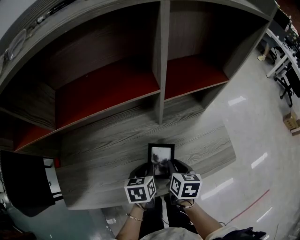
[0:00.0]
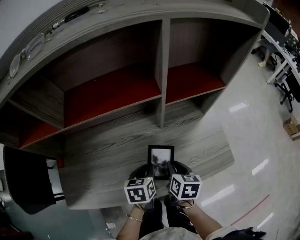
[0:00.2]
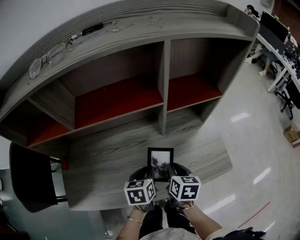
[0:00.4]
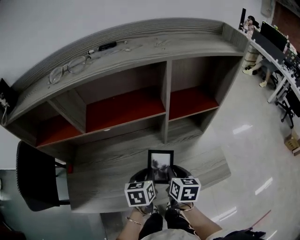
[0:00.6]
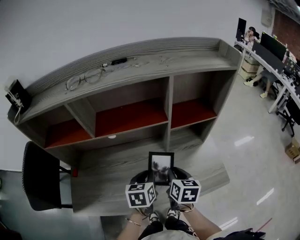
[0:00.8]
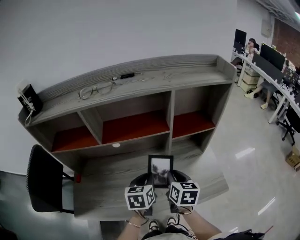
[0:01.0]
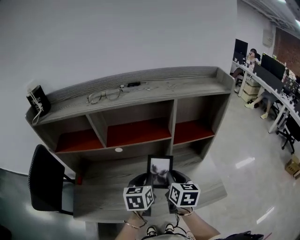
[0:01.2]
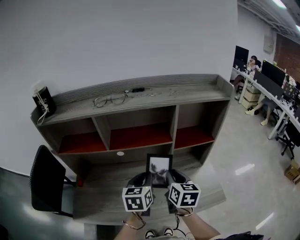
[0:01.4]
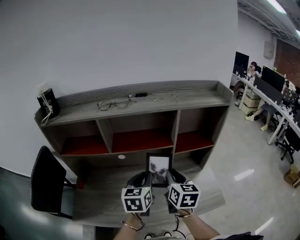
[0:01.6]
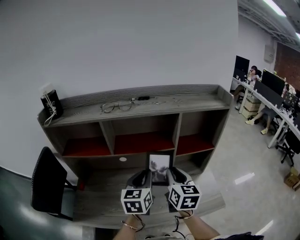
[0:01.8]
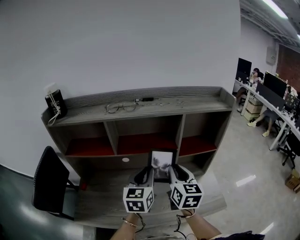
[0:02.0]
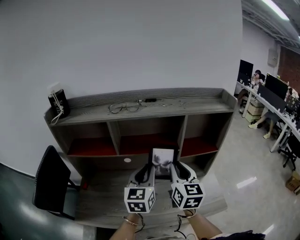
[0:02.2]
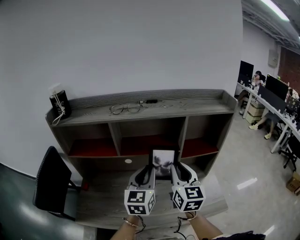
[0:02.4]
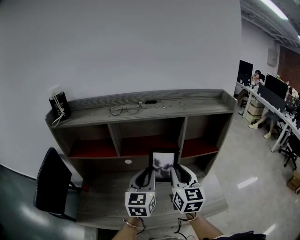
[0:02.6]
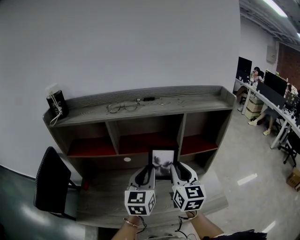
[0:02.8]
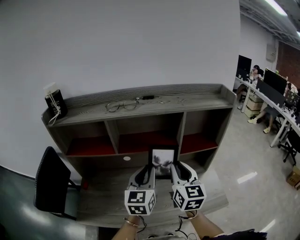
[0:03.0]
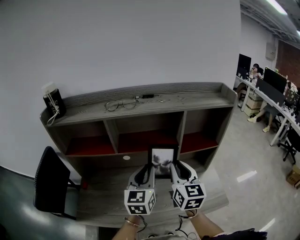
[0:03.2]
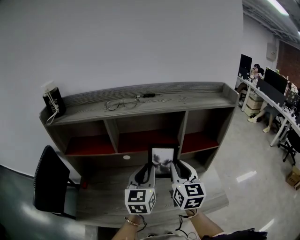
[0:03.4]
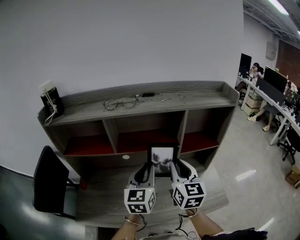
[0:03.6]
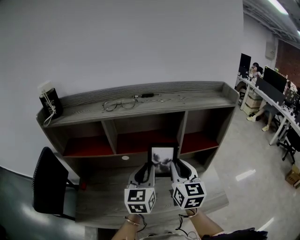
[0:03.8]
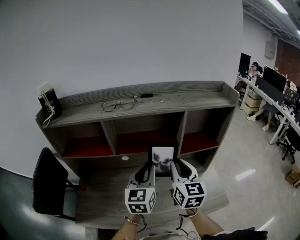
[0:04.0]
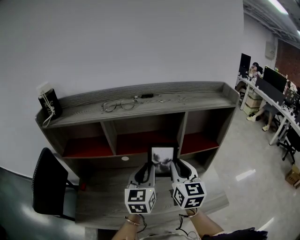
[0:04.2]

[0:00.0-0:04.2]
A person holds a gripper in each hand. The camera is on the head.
0.0 to 1.4 s: The two grippers go approximately 25 cm upward. The right gripper turns by about 30 degrees. The left gripper rotates some 30 degrees.
1.4 to 2.8 s: The grippers both shift upward by some 10 cm. The right gripper turns by approximately 30 degrees, while the left gripper turns by some 20 degrees.
2.8 to 4.2 s: The grippers make only small movements.

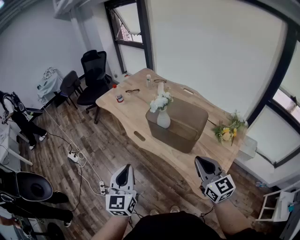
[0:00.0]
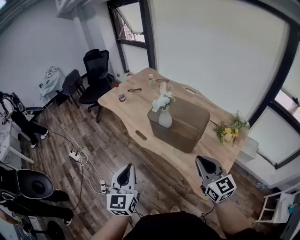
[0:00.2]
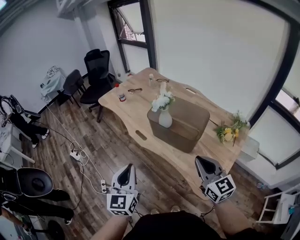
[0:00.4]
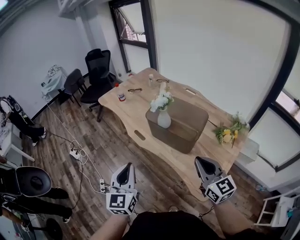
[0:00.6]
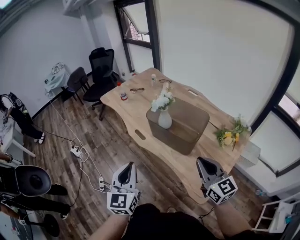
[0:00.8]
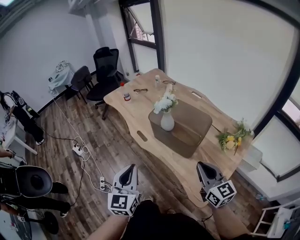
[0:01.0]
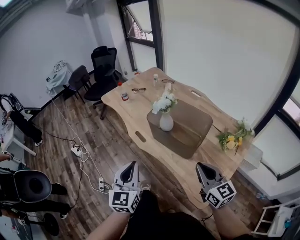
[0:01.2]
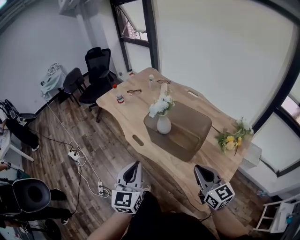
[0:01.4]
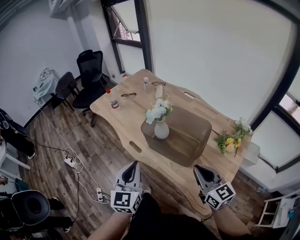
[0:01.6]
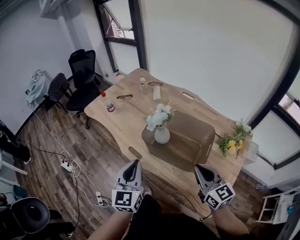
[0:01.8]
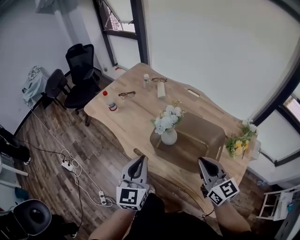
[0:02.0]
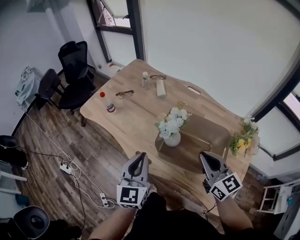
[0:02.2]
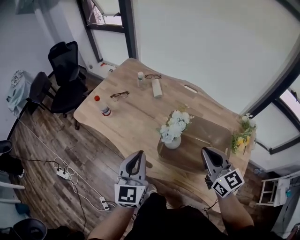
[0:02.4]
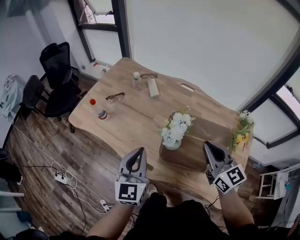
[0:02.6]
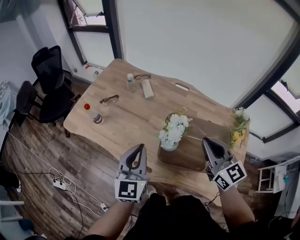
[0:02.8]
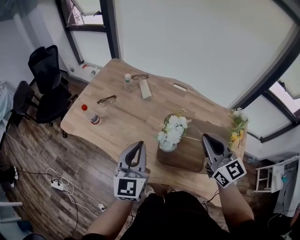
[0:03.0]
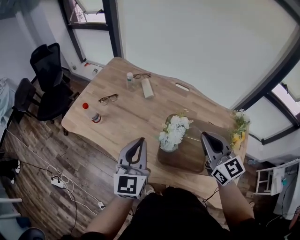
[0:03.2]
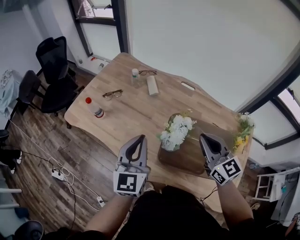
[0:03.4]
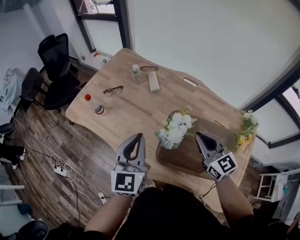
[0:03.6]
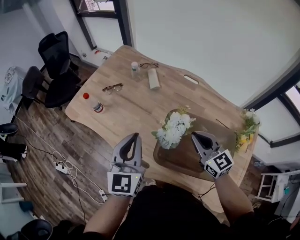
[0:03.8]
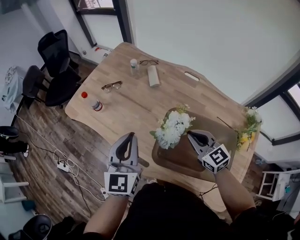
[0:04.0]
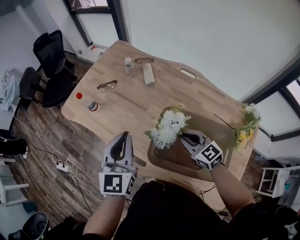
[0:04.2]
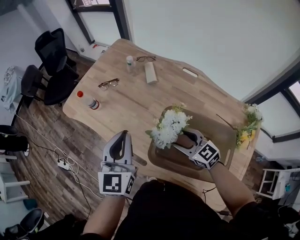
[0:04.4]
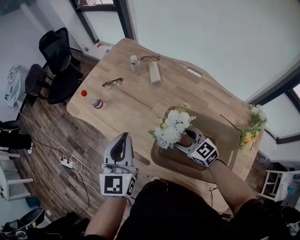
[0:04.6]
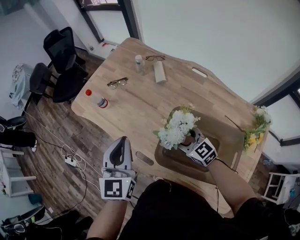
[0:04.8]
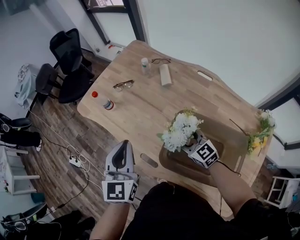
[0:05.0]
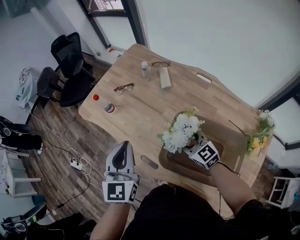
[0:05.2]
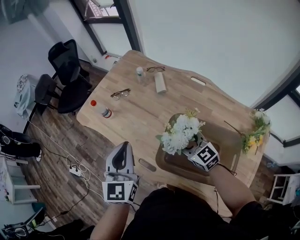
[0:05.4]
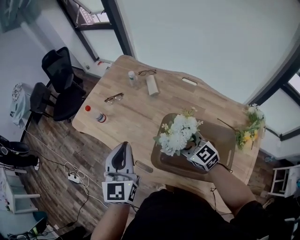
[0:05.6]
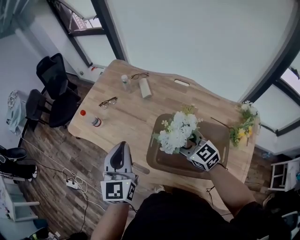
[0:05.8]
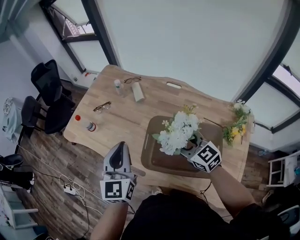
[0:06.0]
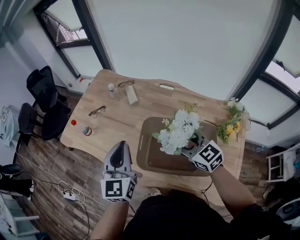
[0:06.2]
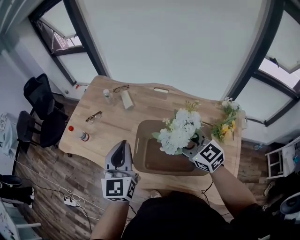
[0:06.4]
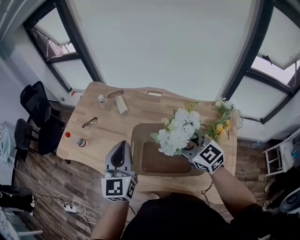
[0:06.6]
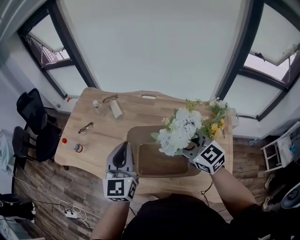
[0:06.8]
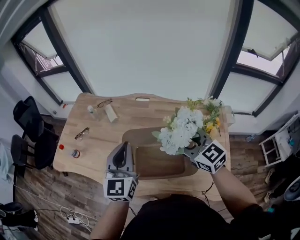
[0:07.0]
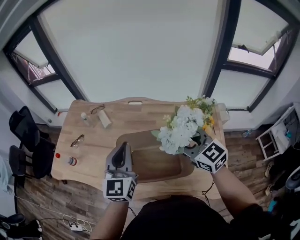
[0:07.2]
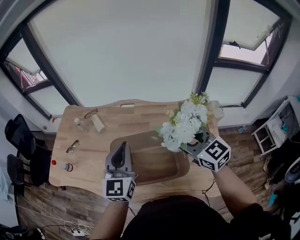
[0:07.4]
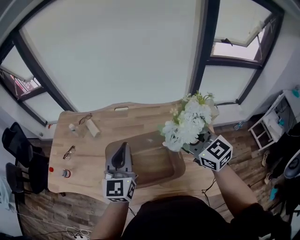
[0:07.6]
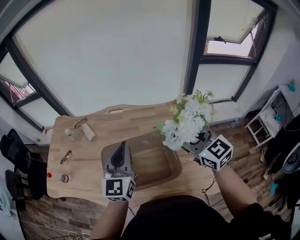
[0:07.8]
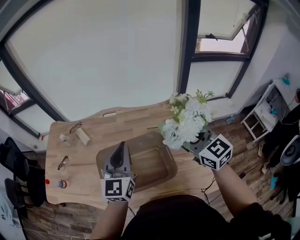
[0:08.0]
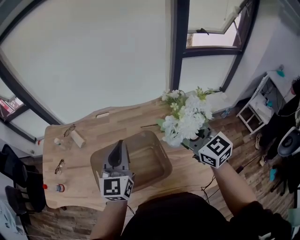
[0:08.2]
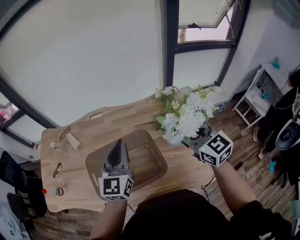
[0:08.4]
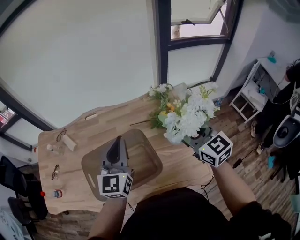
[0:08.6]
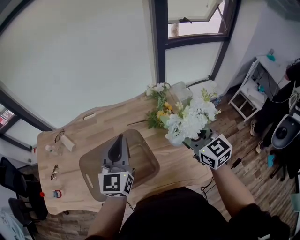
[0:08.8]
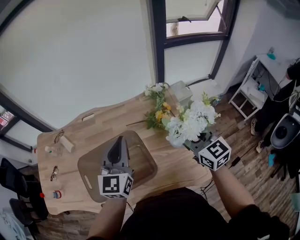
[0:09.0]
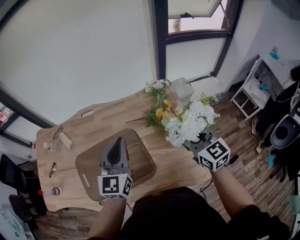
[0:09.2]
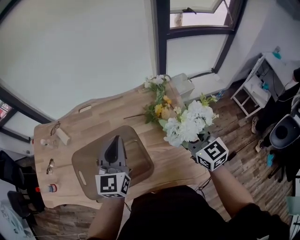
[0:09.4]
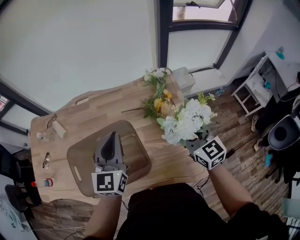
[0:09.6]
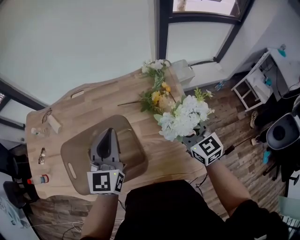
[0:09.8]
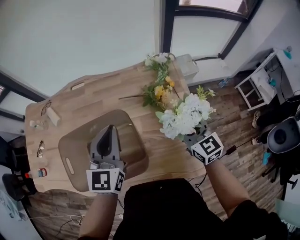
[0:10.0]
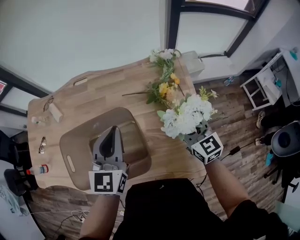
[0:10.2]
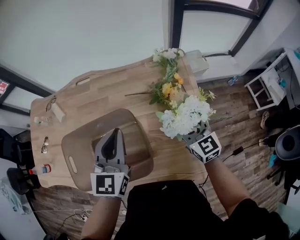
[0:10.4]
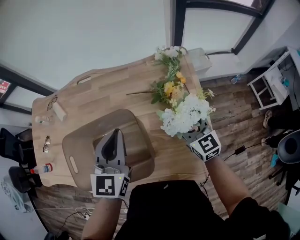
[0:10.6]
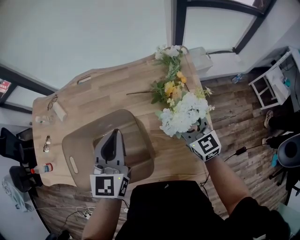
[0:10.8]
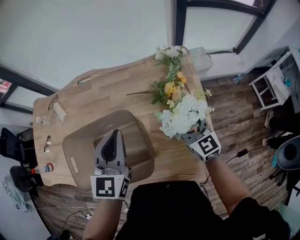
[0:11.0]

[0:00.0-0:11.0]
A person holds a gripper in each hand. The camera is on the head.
0.0 to 1.6 s: The right gripper heads forward, covering about 5 cm. Meanwhile the left gripper goes approximately 15 cm forward and to the right.
1.6 to 3.2 s: The grippers both shift forward by some 30 cm. The left gripper changes its angle by approximately 20 degrees, while the right gripper changes its angle by approximately 20 degrees.
3.2 to 4.8 s: The right gripper travels downward by approximately 20 cm, swivels some 30 degrees, and opens.
4.8 to 6.2 s: The left gripper travels to the right by some 5 cm. Meanwhile the right gripper moves upward, to the right and backward, about 15 cm.
6.2 to 7.8 s: The right gripper ends up roughly 25 cm from where it was, and rotates some 30 degrees, while the left gripper moves approximately 20 cm, and turns by roughly 30 degrees.
7.8 to 9.4 s: The grippers both shift to the right and downward by roughly 15 cm.
9.4 to 11.0 s: The right gripper moves downward, approximately 15 cm, while the left gripper goes about 5 cm downward.

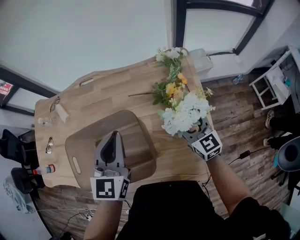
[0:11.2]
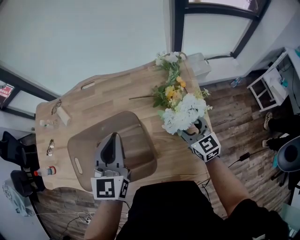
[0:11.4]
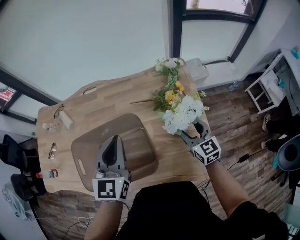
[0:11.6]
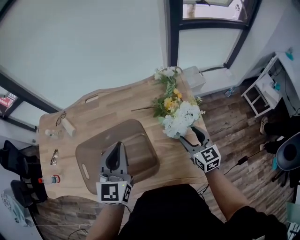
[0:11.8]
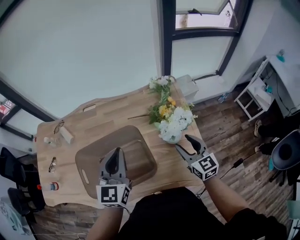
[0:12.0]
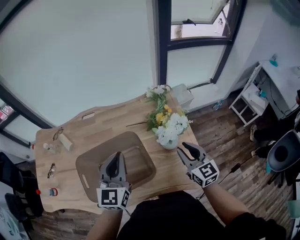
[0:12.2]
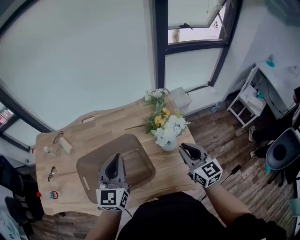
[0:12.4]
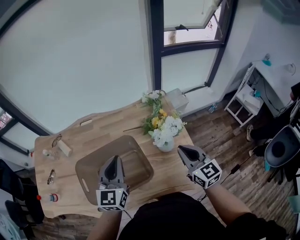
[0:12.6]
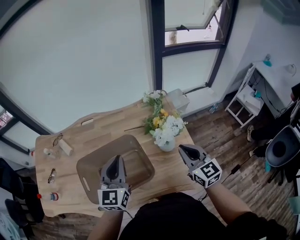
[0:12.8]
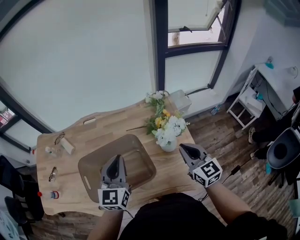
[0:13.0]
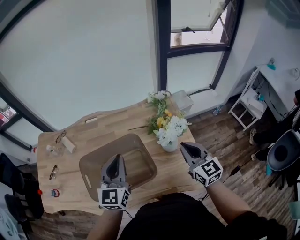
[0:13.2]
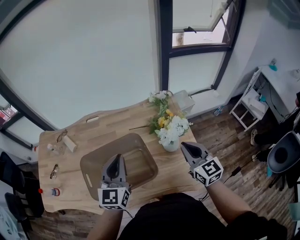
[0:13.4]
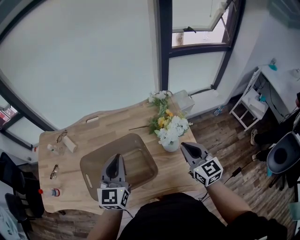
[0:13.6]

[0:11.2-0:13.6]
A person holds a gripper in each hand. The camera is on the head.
11.2 to 12.4 s: The right gripper goes about 15 cm upward and backward, and closes its fingers; the left gripper ends up roughly 5 cm from where it was.
12.4 to 13.6 s: There are only small adjustments of the grippers.

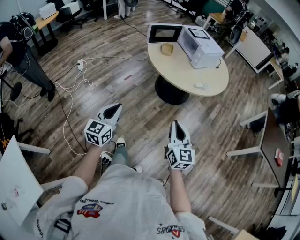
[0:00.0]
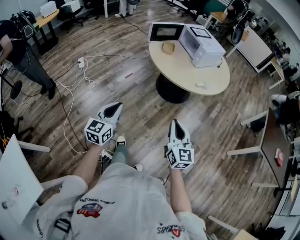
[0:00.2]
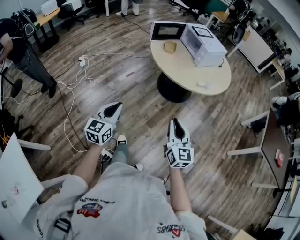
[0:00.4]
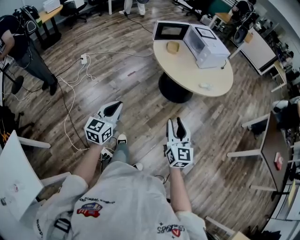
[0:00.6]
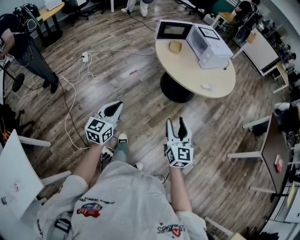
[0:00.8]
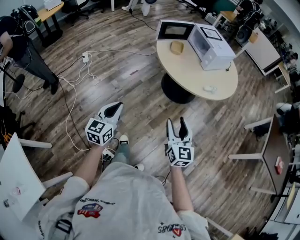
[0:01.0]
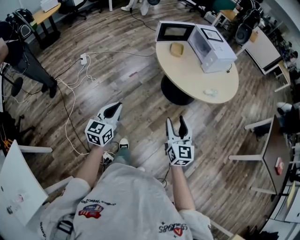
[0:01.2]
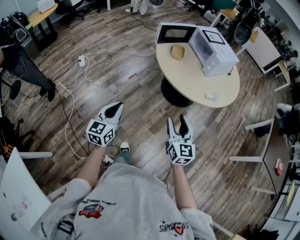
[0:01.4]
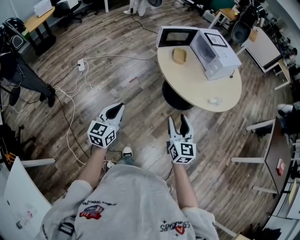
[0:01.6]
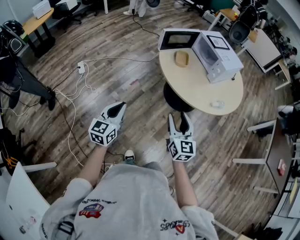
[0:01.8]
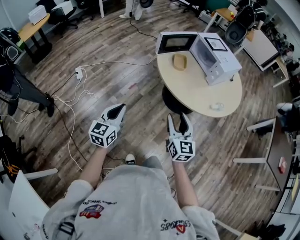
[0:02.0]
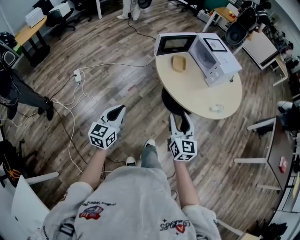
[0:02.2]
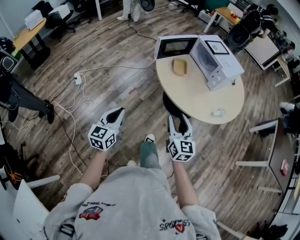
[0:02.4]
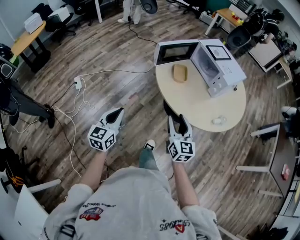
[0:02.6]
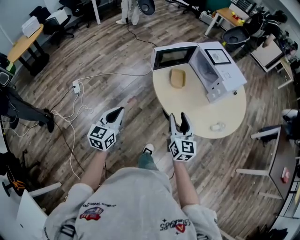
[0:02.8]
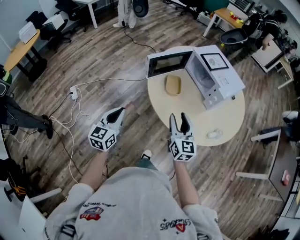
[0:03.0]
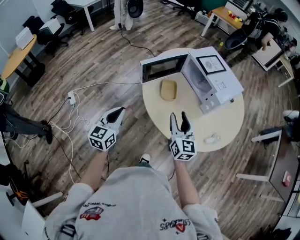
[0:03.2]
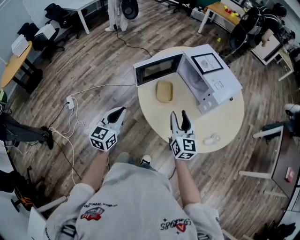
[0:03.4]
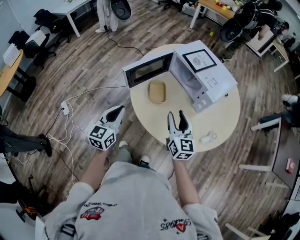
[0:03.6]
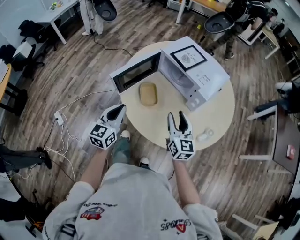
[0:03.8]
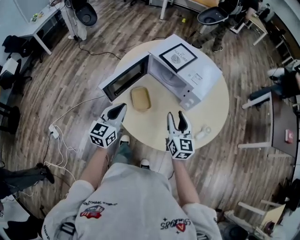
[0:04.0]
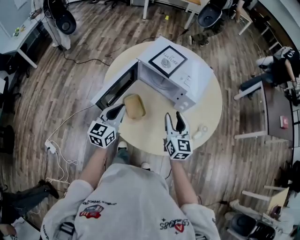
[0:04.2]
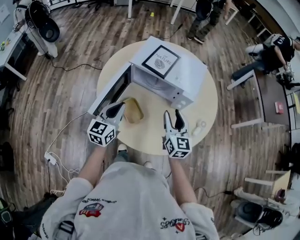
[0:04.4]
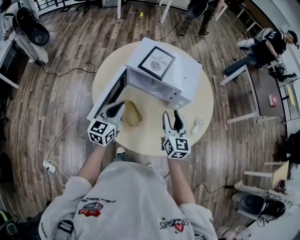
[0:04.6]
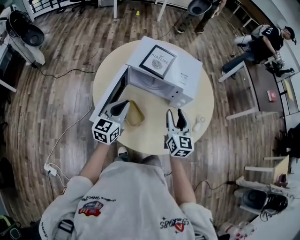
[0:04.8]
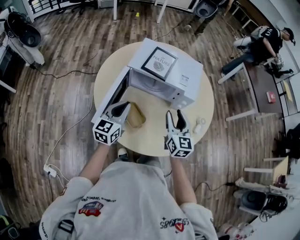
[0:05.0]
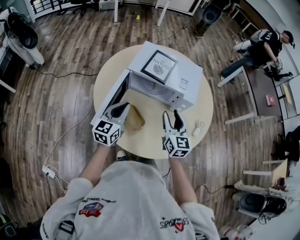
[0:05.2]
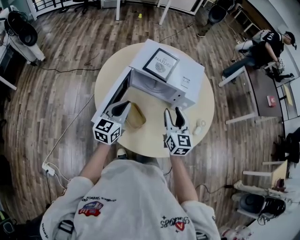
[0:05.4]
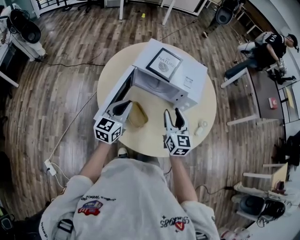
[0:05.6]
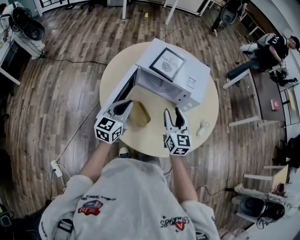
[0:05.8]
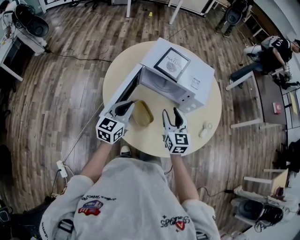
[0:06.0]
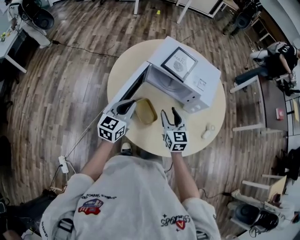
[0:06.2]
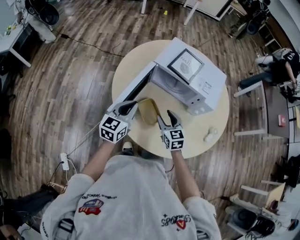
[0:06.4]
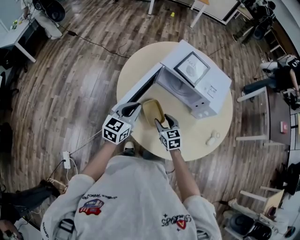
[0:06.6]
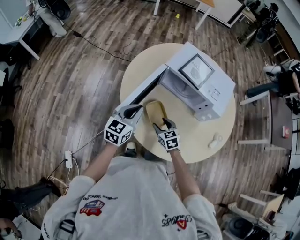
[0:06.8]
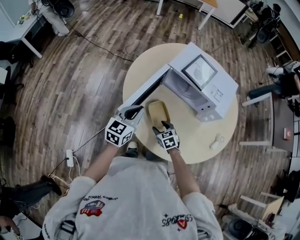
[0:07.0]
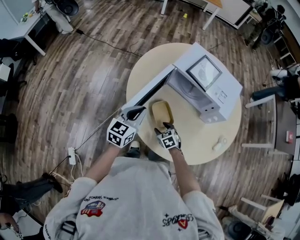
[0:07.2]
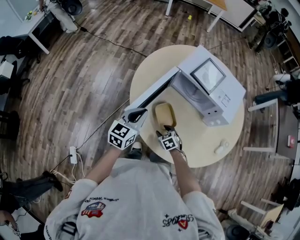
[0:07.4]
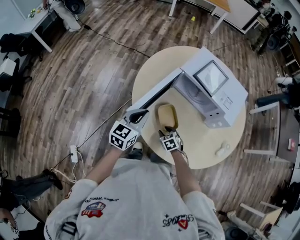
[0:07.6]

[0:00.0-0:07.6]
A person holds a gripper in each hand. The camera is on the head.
0.0 to 1.6 s: The grippers both shift forward and to the left by some 25 cm. The right gripper opens its fingers.
1.6 to 3.0 s: Both grippers travel together forward, some 35 cm.
3.0 to 4.6 s: The left gripper moves approximately 50 cm, and rotates approximately 40 degrees. The right gripper moves roughly 30 cm, and swivels about 40 degrees.
4.6 to 6.0 s: The right gripper travels to the left by some 10 cm.
6.0 to 7.6 s: The left gripper heads to the left, covering approximately 10 cm. Meanwhile the right gripper shifts some 30 cm downward and to the left, and points its fingers some 40 degrees further downward.
